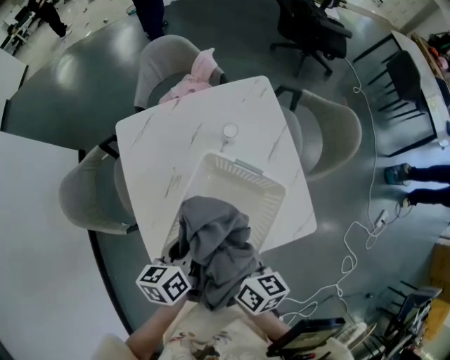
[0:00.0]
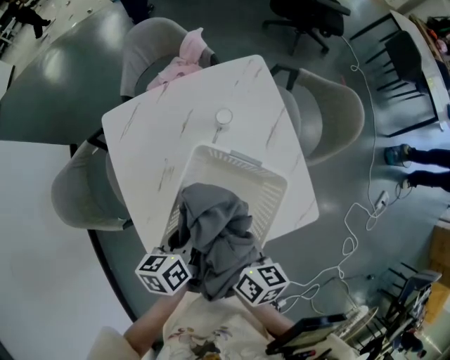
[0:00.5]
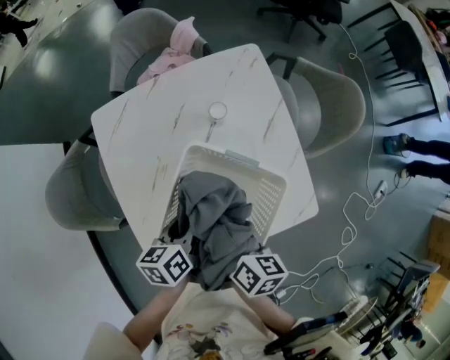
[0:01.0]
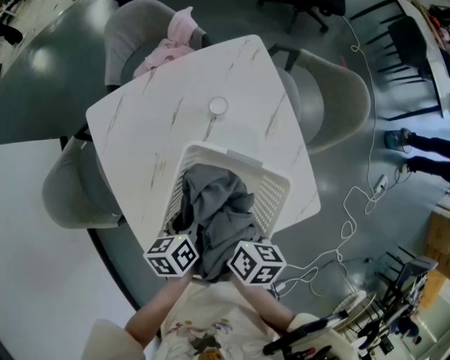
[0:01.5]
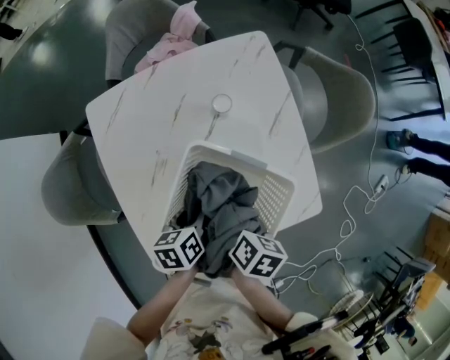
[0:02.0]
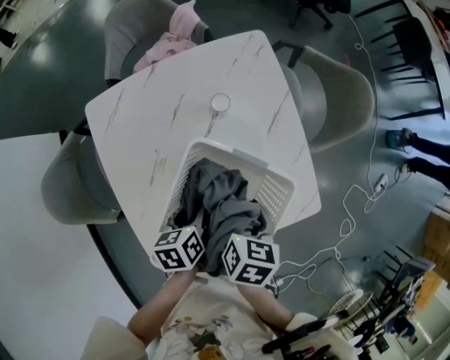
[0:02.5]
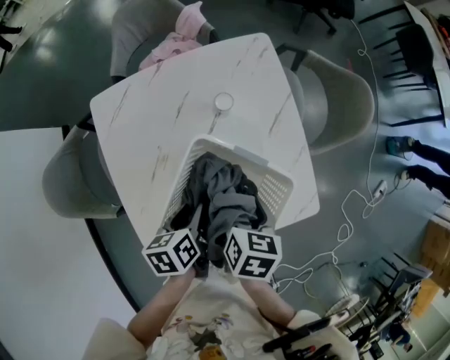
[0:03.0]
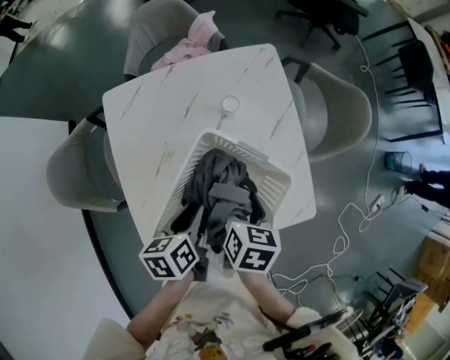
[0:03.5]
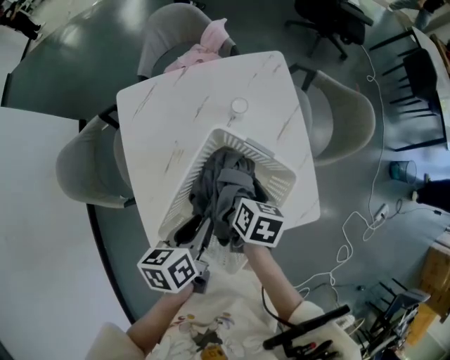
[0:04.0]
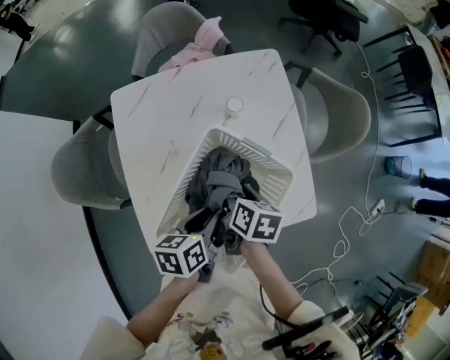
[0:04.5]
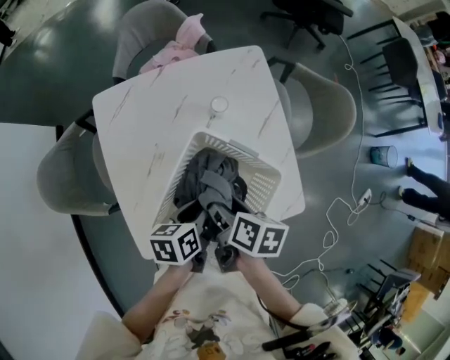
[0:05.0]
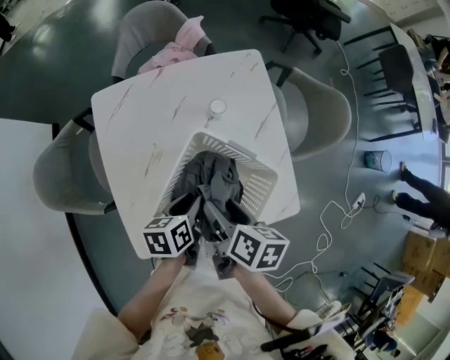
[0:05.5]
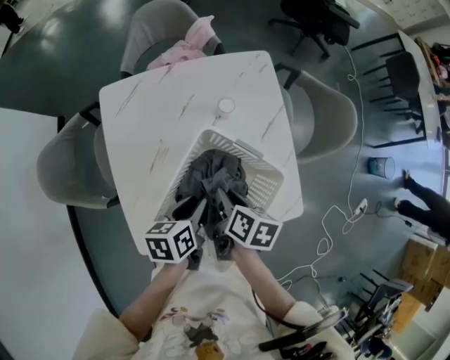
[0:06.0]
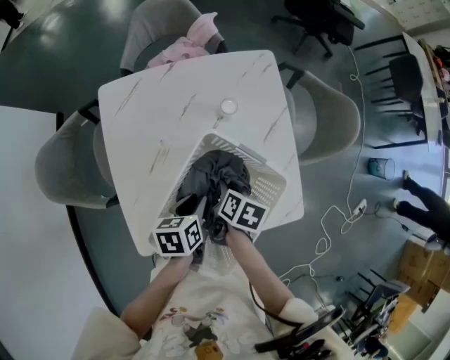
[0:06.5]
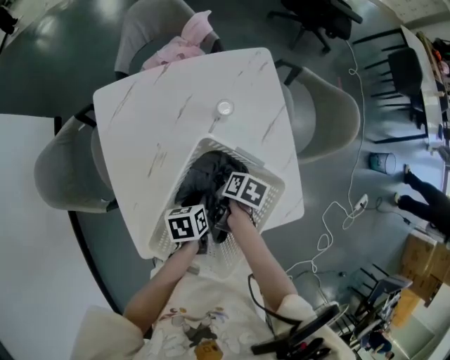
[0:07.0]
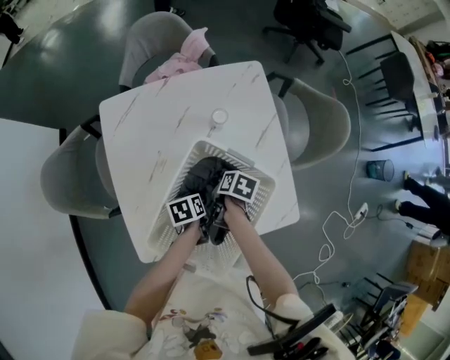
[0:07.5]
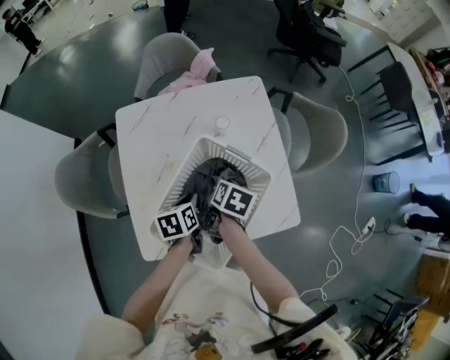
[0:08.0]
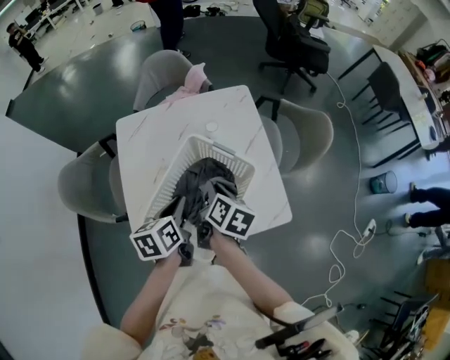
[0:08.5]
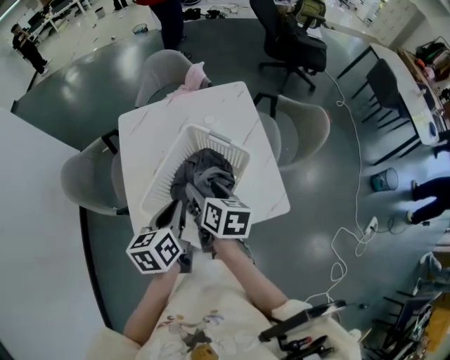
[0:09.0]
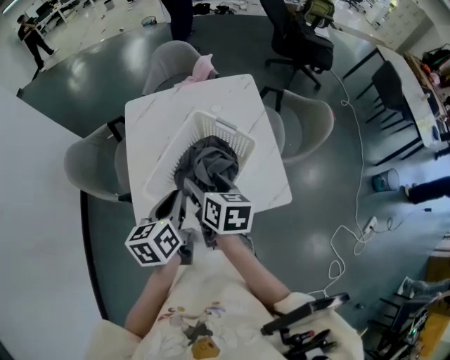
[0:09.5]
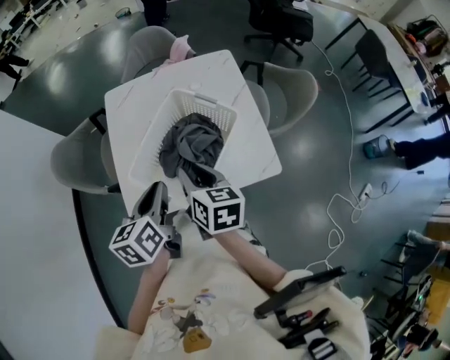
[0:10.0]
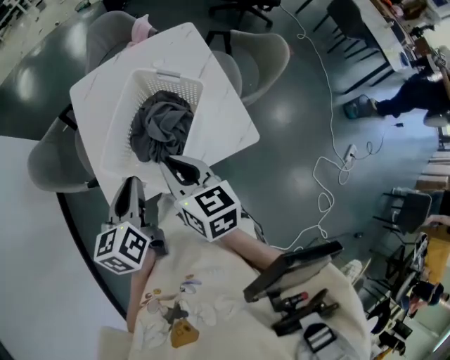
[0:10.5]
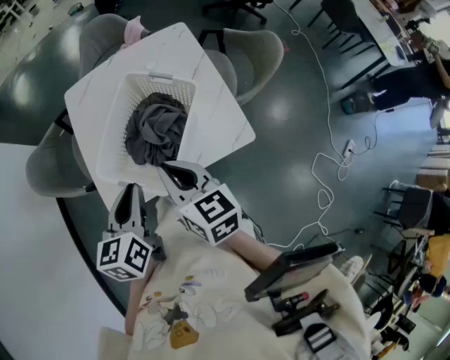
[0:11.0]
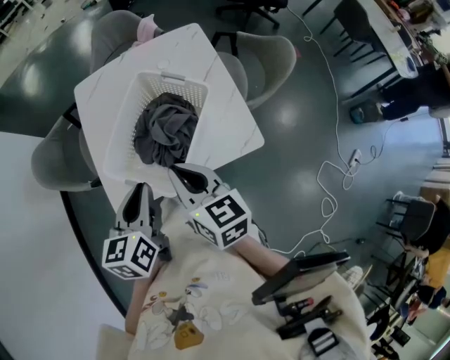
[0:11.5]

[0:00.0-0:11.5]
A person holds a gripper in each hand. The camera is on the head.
0:00.0 to 0:02.0: The grippers both shift downward and forward by about 15 cm. The right gripper tips its fingers downward by some 30 degrees.
0:02.0 to 0:04.0: The right gripper opens its fingers; the left gripper shifts roughly 15 cm upward and backward.
0:04.0 to 0:06.0: The left gripper heads downward, covering about 5 cm; the right gripper closes its fingers.
0:06.0 to 0:07.5: Both grippers move downward, about 15 cm. The left gripper turns by approximately 20 degrees.
0:07.5 to 0:09.5: Both grippers move upward and backward, approximately 30 cm. The right gripper tips its fingers upward by some 40 degrees, and opens up. The left gripper angles its fingers upward, by about 30 degrees.
0:09.5 to 0:11.5: Both grippers travel together backward, some 5 cm. The right gripper closes.

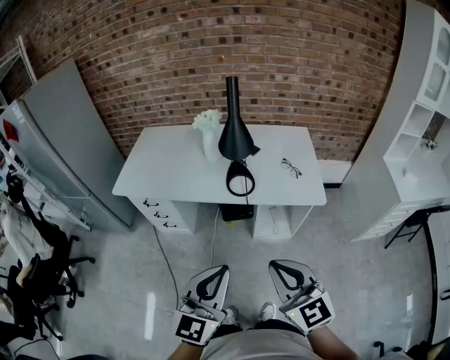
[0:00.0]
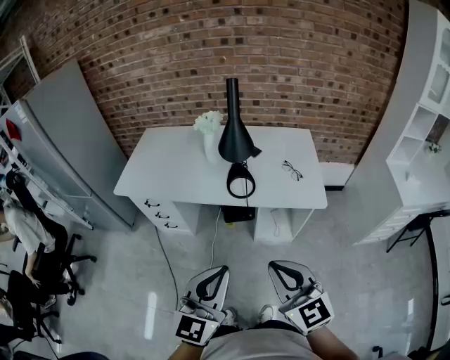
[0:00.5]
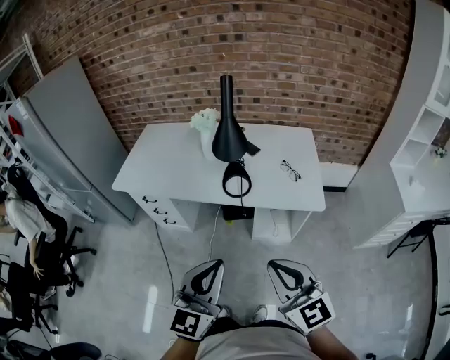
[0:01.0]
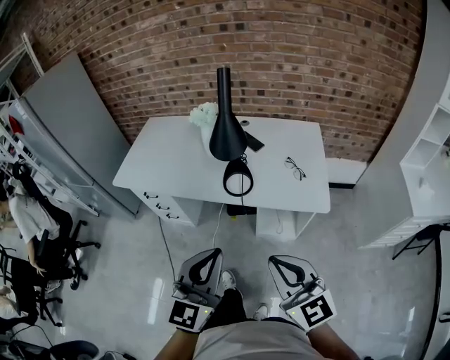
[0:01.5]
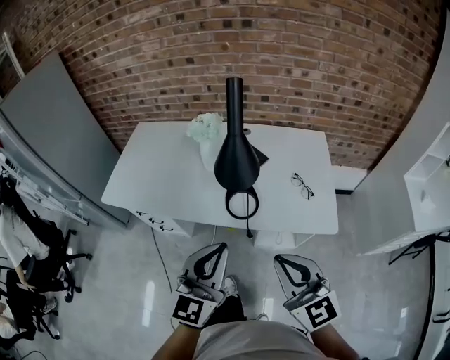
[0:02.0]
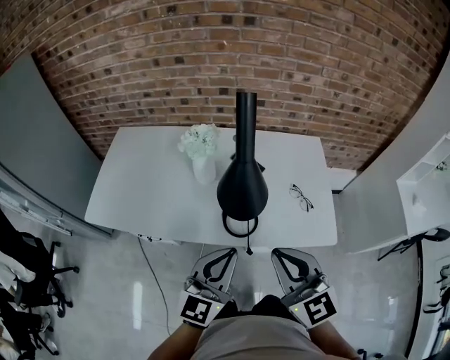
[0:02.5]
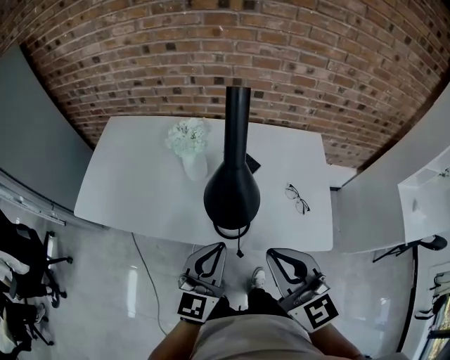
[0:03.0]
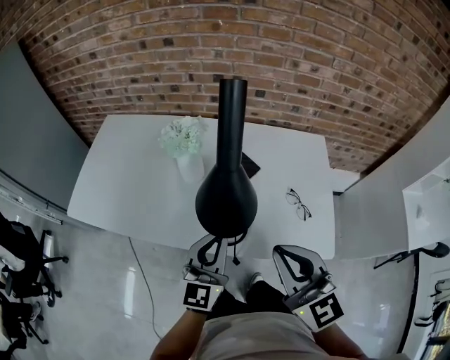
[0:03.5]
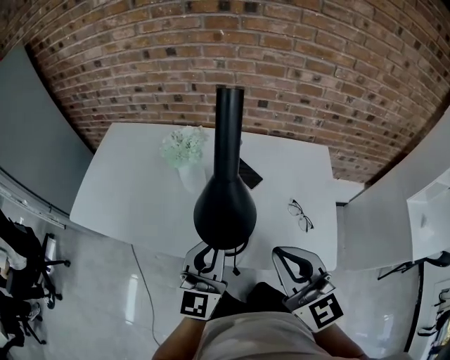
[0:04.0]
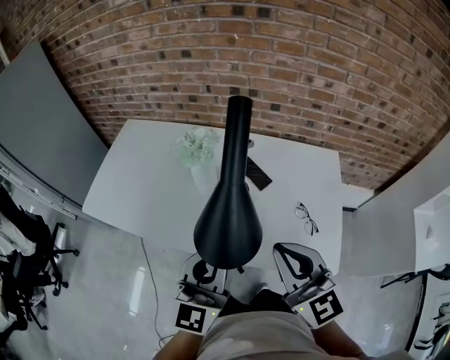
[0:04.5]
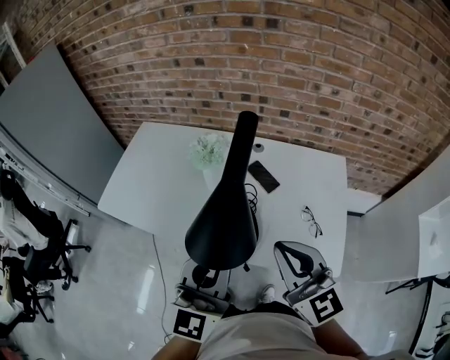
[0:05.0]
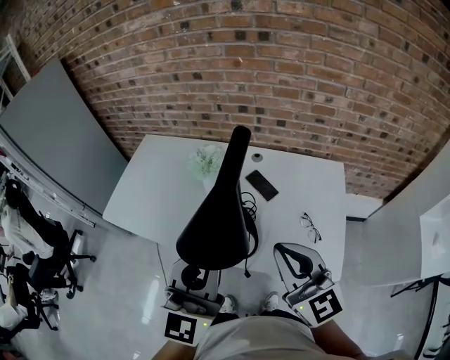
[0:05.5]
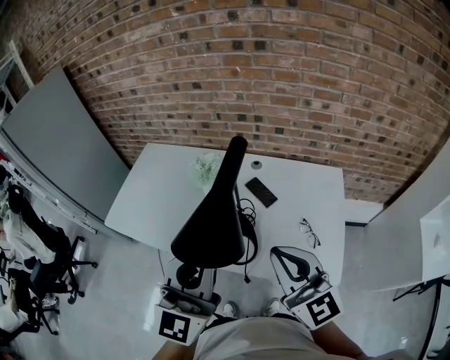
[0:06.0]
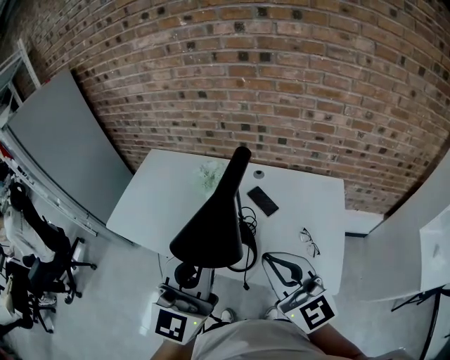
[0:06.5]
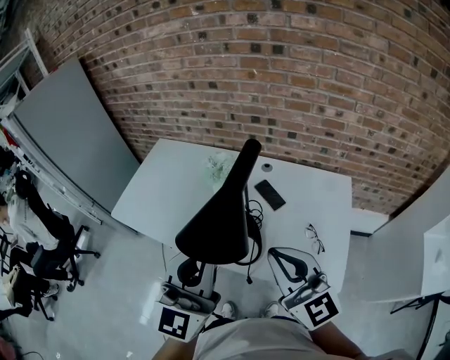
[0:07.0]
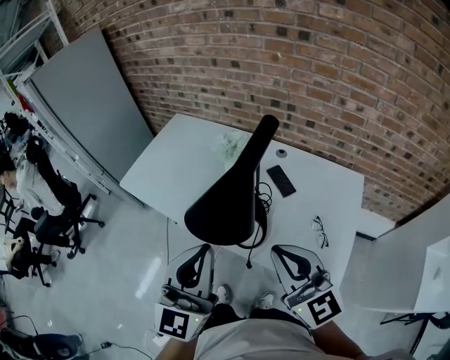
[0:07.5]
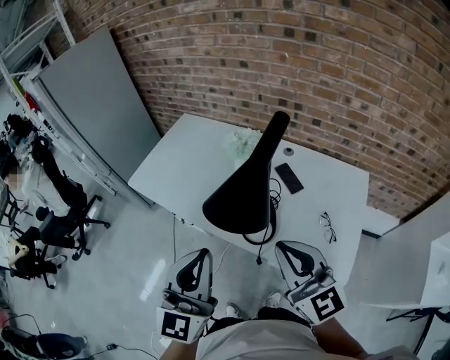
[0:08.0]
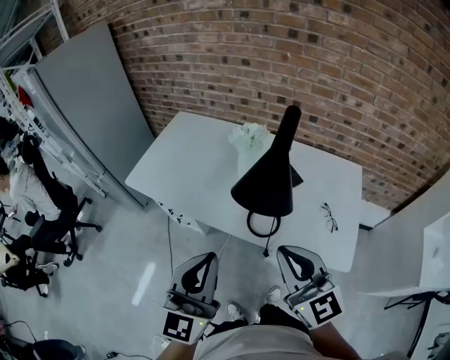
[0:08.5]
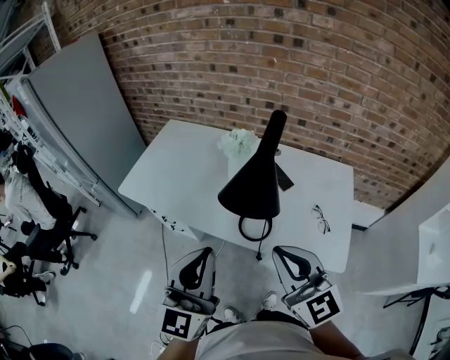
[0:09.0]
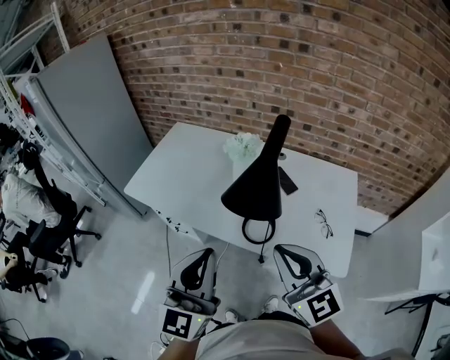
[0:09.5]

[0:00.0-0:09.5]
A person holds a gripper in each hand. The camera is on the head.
0:00.0 to 0:02.0: The grippers both shift forward by approximately 20 cm.
0:02.0 to 0:04.0: The right gripper is displaced forward by roughly 20 cm. Meanwhile the left gripper travels forward and downward by roughly 20 cm.
0:04.0 to 0:05.5: The left gripper moves upward, about 20 cm. Meanwhile the right gripper is displaced upward by roughly 5 cm.
0:05.5 to 0:07.5: The left gripper changes place by roughly 5 cm.
0:07.5 to 0:09.5: The two grippers go some 10 cm to the left.

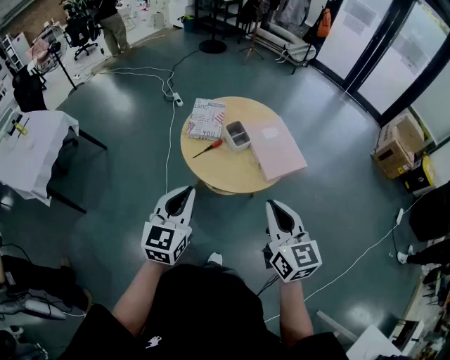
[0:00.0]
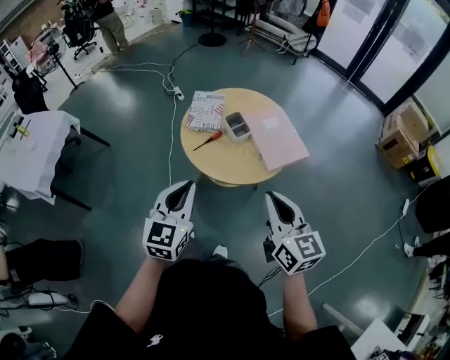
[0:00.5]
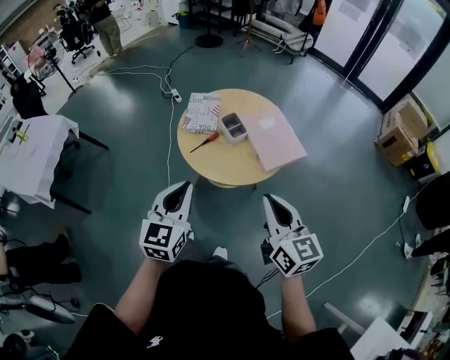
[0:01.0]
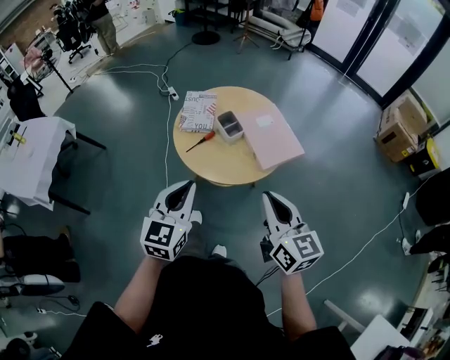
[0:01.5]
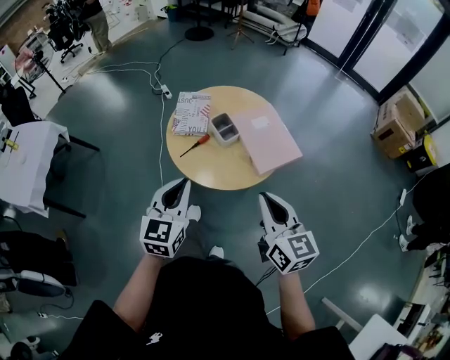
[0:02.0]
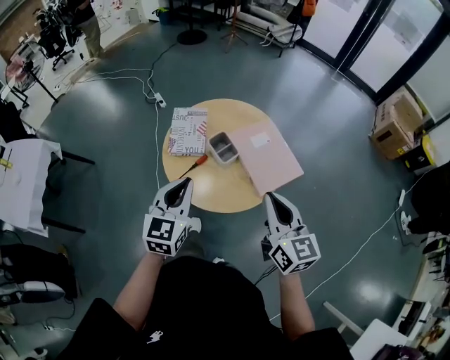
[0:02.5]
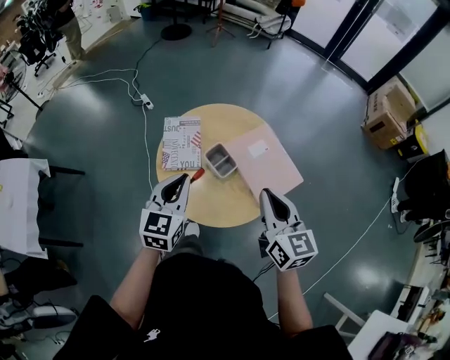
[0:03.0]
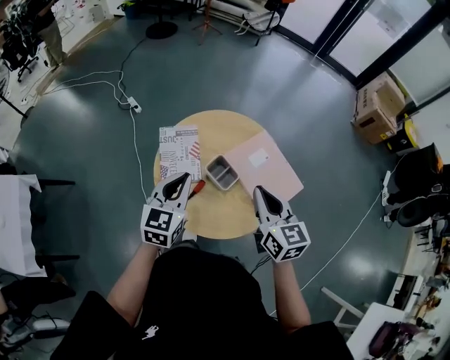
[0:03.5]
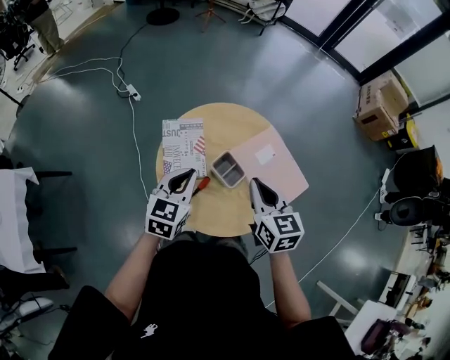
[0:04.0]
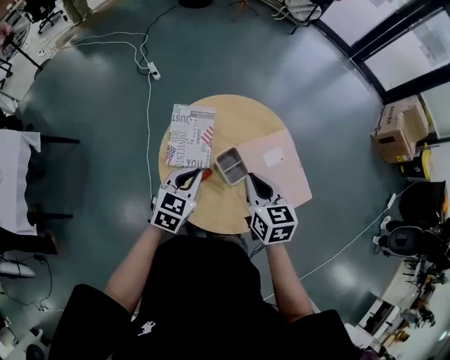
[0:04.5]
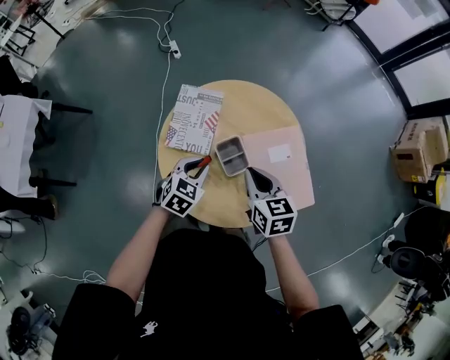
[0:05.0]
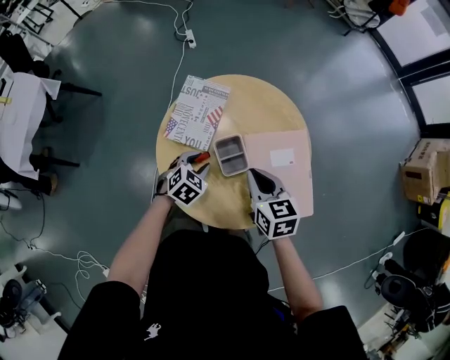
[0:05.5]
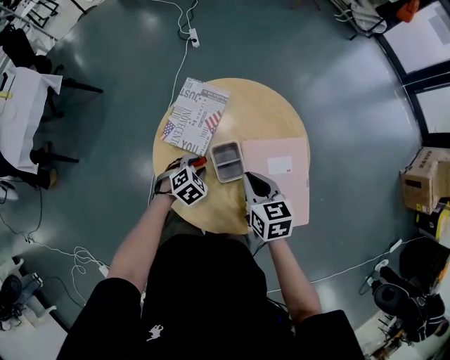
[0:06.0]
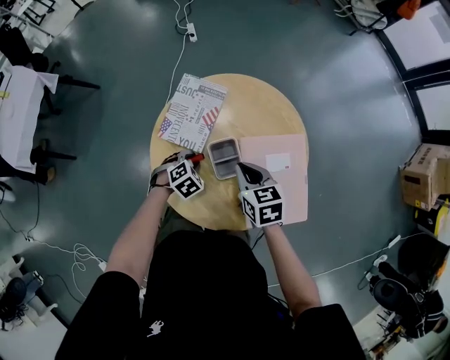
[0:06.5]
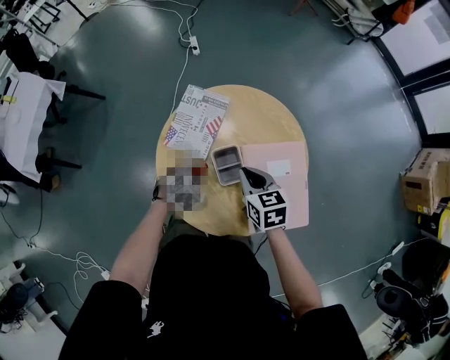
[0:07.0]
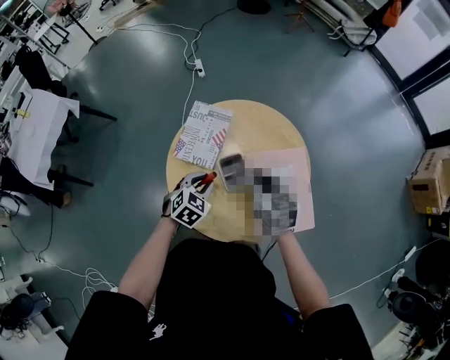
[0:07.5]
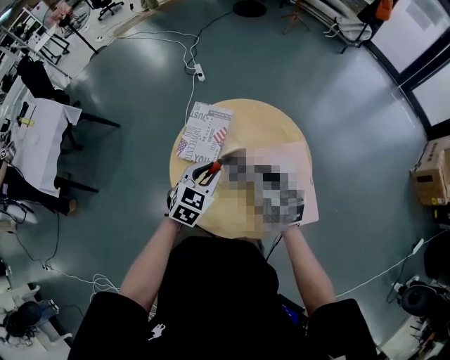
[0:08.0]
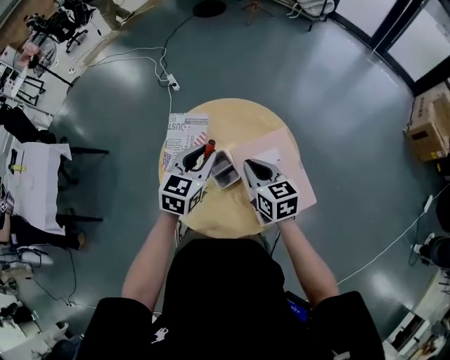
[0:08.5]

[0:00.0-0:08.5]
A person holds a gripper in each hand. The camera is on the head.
0:00.0 to 0:02.0: The left gripper moves forward, roughly 5 cm. Meanwhile the right gripper changes place by approximately 5 cm.
0:02.0 to 0:04.0: Both grippers move forward, about 30 cm. The left gripper turns by approximately 20 degrees, while the right gripper turns by approximately 20 degrees.
0:04.0 to 0:06.5: The left gripper heads downward, covering roughly 25 cm, tips its fingers downward by some 50 degrees, and opens up, while the right gripper travels downward by approximately 15 cm, and swivels about 40 degrees.
0:06.5 to 0:08.5: The left gripper travels upward by about 25 cm, and points its fingers roughly 40 degrees further upward. Meanwhile the right gripper moves upward and to the right, some 10 cm, and turns by about 20 degrees.
